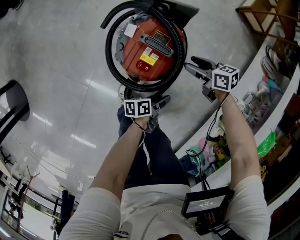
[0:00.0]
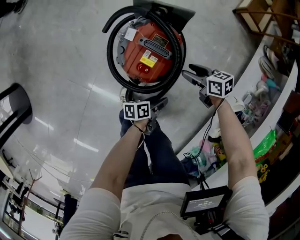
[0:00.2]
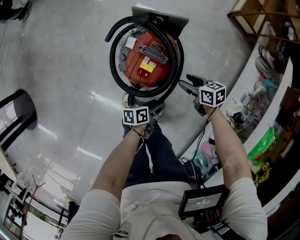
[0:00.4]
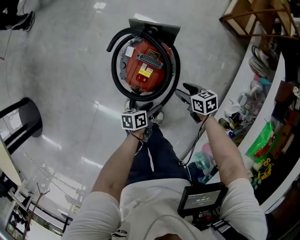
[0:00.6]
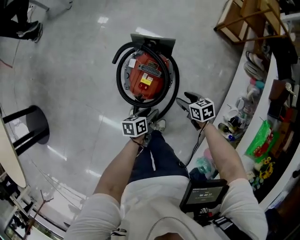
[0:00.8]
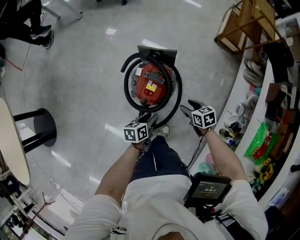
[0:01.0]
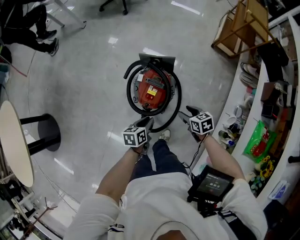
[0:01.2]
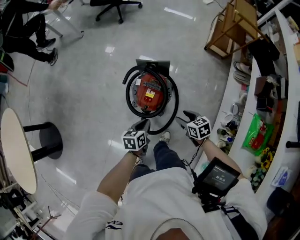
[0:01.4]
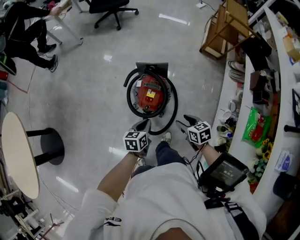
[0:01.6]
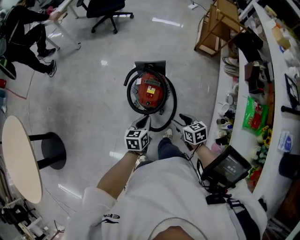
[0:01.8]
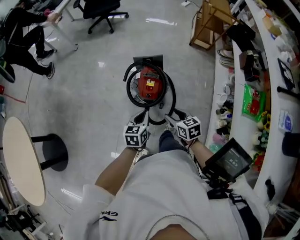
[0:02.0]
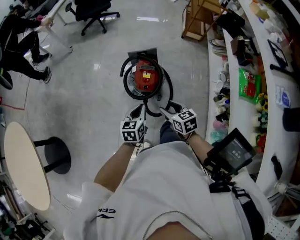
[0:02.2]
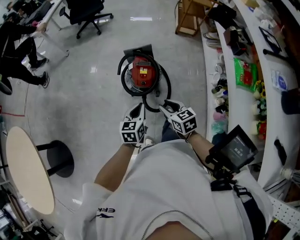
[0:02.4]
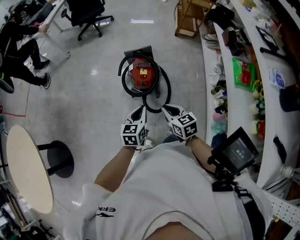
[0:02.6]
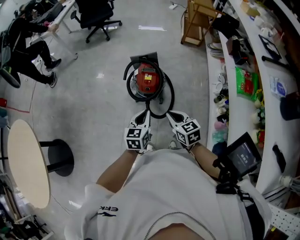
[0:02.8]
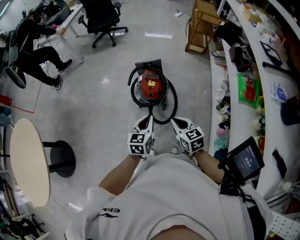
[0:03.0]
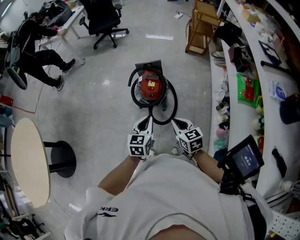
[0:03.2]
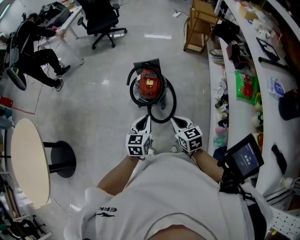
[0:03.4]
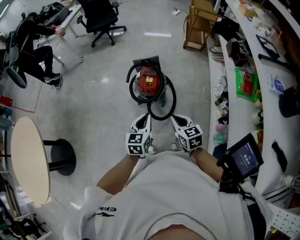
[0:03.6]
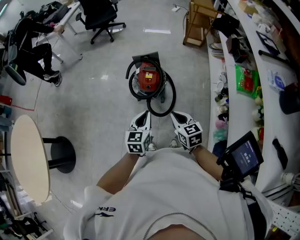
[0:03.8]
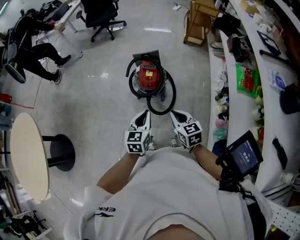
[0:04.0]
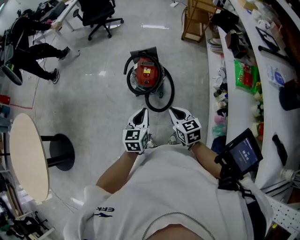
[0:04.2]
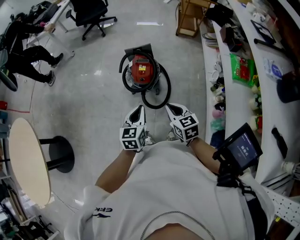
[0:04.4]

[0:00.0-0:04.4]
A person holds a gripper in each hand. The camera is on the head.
0:00.0 to 0:01.4: Both grippers travel together upward, roughly 30 cm. The left gripper swivels some 50 degrees, and closes up; the right gripper turns by roughly 20 degrees.
0:01.4 to 0:03.0: The right gripper goes some 40 cm backward, upward and to the left, rotates approximately 30 degrees, and closes its fingers; the left gripper moves backward and upward, roughly 30 cm, and swivels approximately 30 degrees.
0:03.0 to 0:04.4: There are only small adjustments of the grippers.

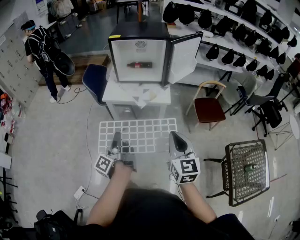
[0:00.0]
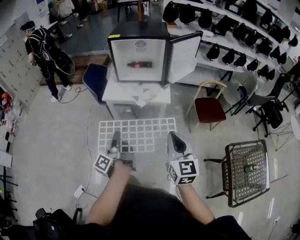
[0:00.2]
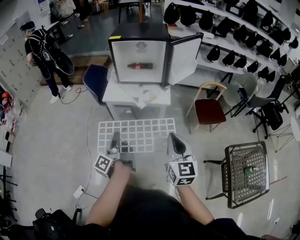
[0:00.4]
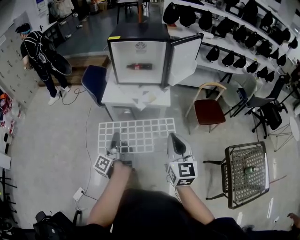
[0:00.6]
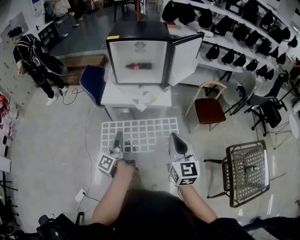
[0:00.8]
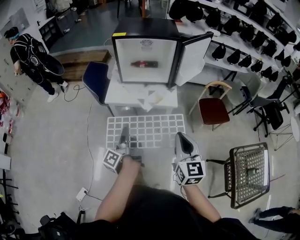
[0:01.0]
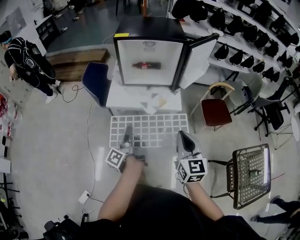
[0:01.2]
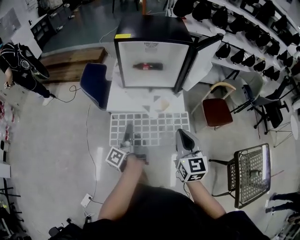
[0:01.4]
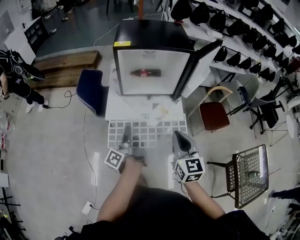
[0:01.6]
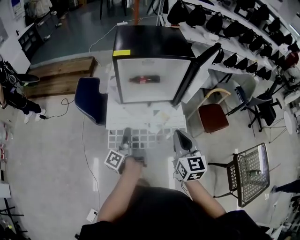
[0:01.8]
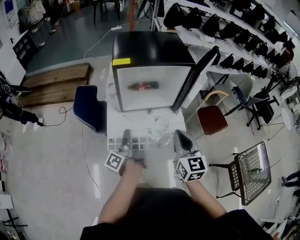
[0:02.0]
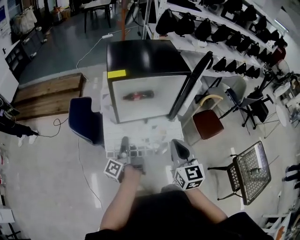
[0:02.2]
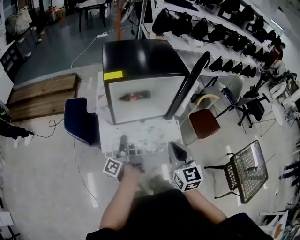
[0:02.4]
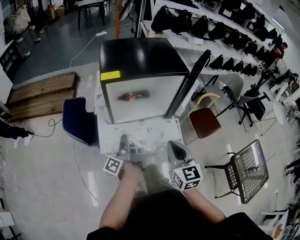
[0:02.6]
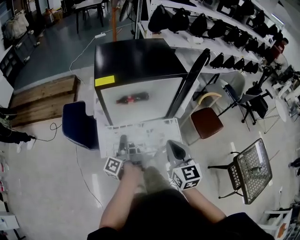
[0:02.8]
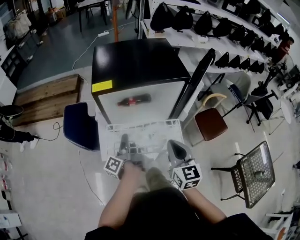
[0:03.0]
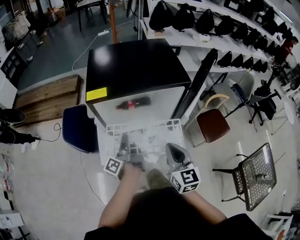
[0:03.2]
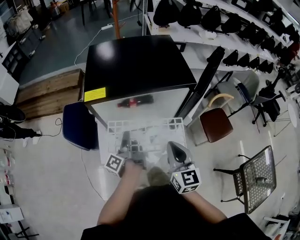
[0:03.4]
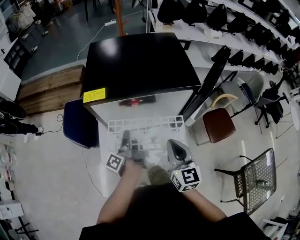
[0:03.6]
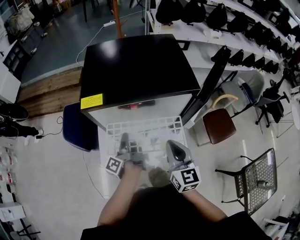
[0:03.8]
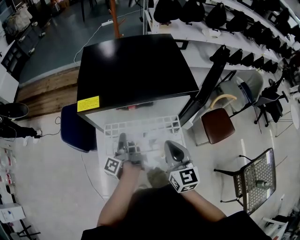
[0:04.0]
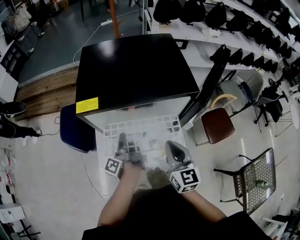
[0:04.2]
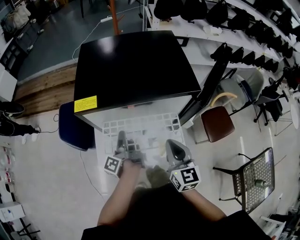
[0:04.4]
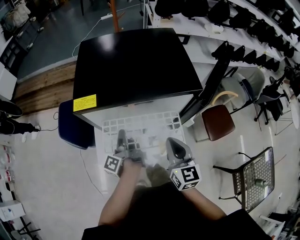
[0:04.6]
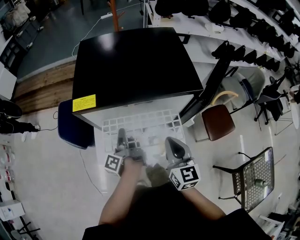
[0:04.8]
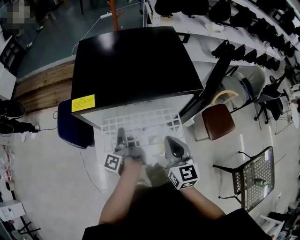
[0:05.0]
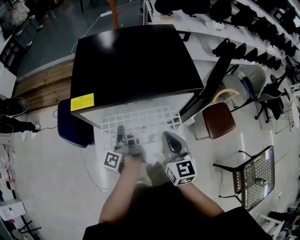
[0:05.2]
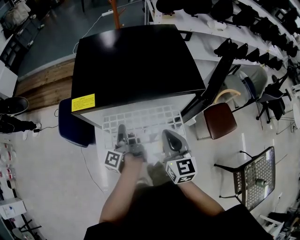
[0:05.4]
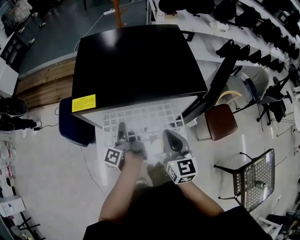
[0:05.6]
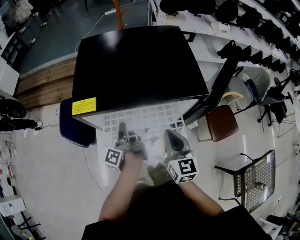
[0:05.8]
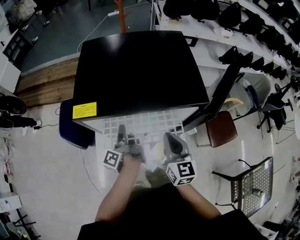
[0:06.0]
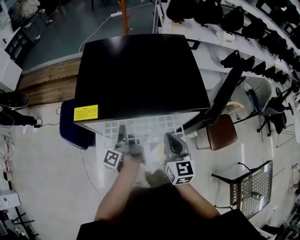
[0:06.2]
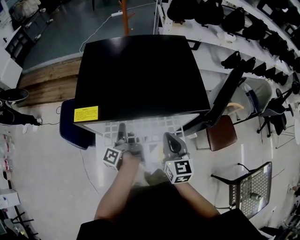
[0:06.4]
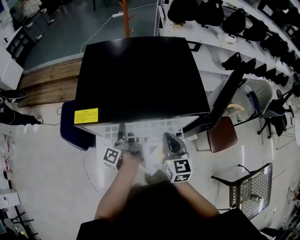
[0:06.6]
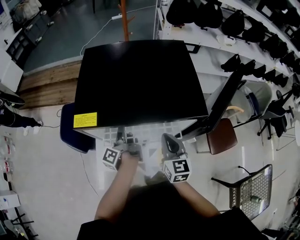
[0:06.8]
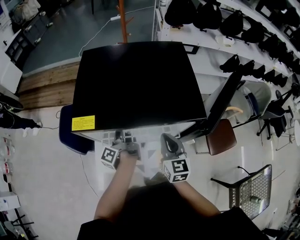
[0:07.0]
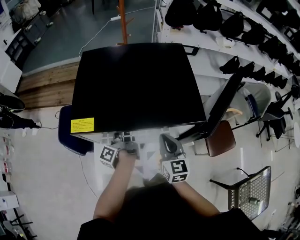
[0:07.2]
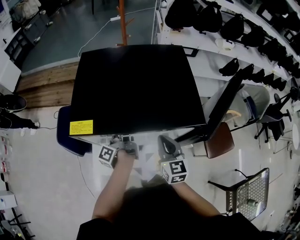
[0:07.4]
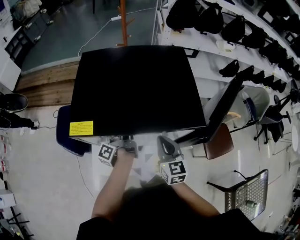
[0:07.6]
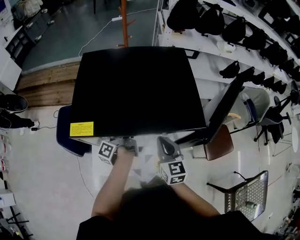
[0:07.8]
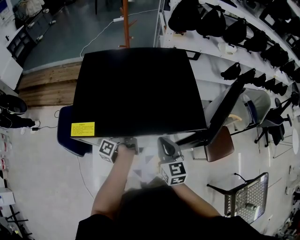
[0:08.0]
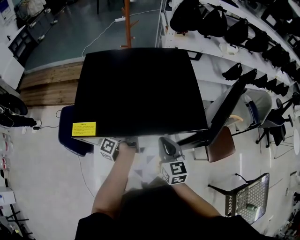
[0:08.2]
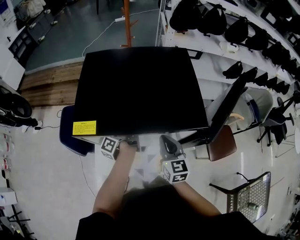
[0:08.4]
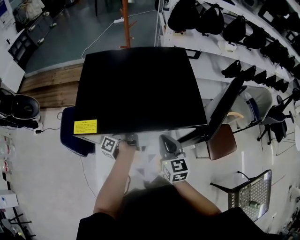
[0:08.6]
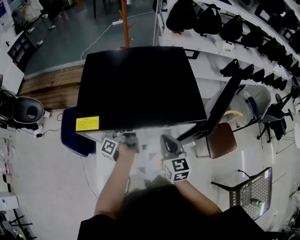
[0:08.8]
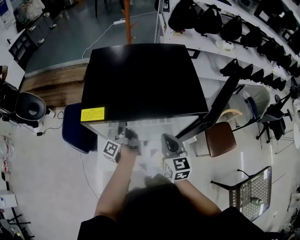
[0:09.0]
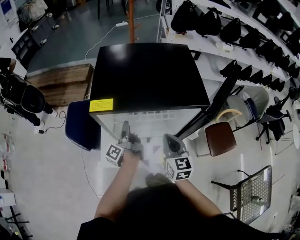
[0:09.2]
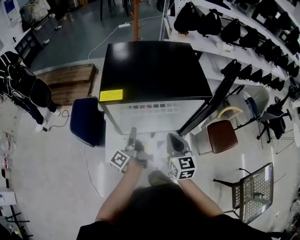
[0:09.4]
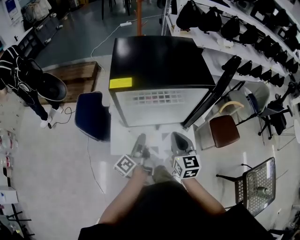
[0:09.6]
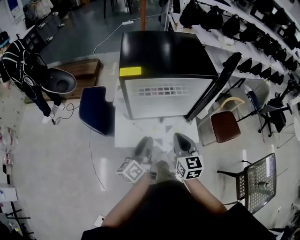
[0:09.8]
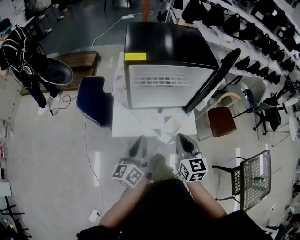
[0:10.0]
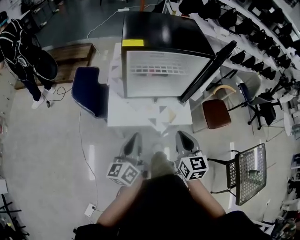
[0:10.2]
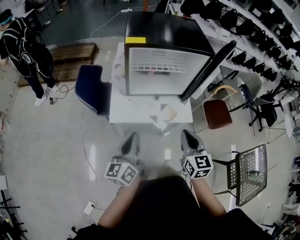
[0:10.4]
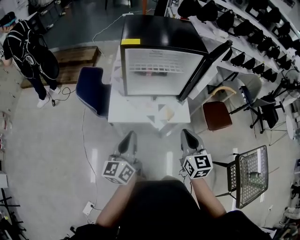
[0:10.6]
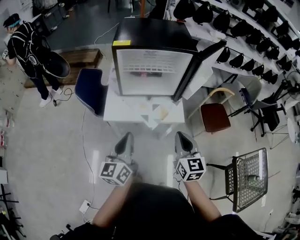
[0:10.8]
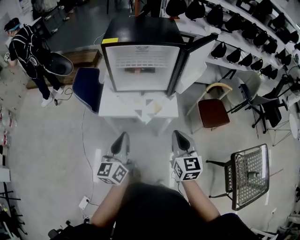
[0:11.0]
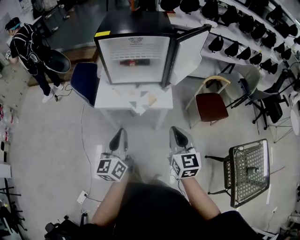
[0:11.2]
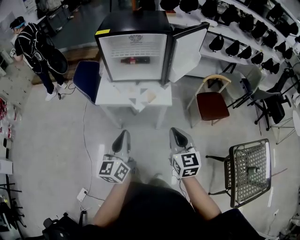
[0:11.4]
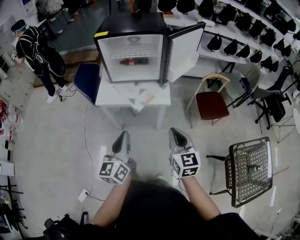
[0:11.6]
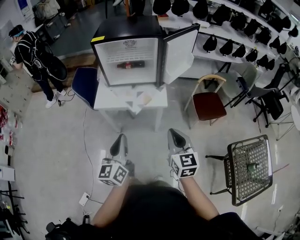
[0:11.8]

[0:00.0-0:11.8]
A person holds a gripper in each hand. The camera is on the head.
0:00.0 to 0:01.4: The right gripper ends up roughly 25 cm from where it was.
0:01.4 to 0:03.0: The right gripper ends up roughly 25 cm from where it was.
0:03.0 to 0:04.4: The right gripper shifts by about 15 cm.
0:04.4 to 0:06.0: The right gripper moves some 5 cm.
0:06.0 to 0:07.4: The right gripper moves about 5 cm.
0:08.8 to 0:10.4: The right gripper changes place by about 35 cm.
0:10.4 to 0:11.8: The right gripper shifts by roughly 30 cm.

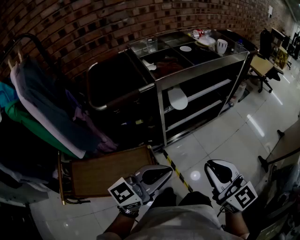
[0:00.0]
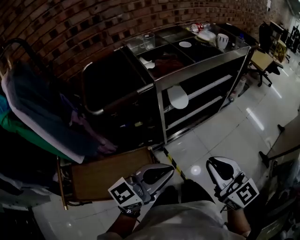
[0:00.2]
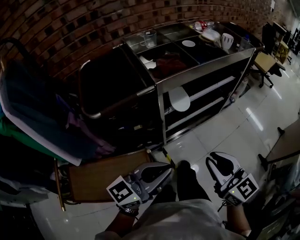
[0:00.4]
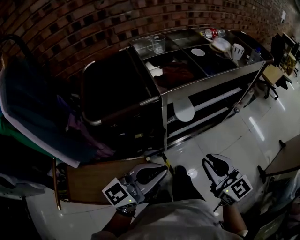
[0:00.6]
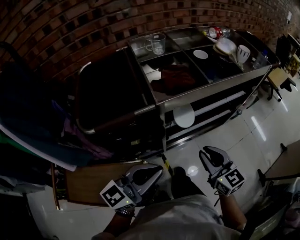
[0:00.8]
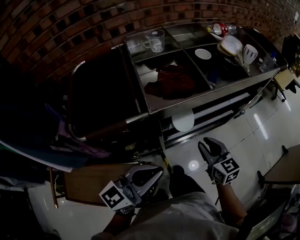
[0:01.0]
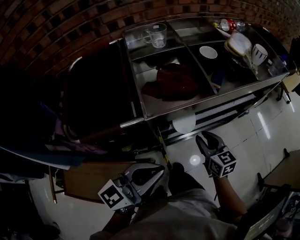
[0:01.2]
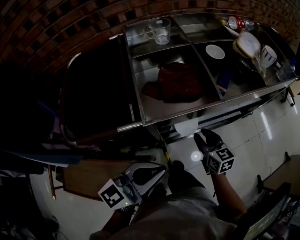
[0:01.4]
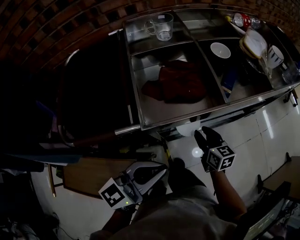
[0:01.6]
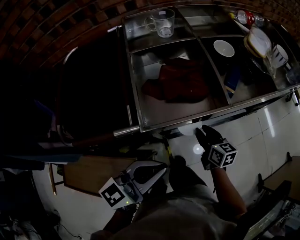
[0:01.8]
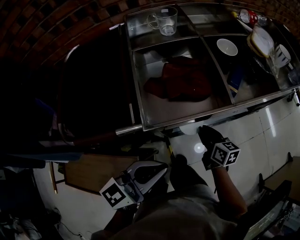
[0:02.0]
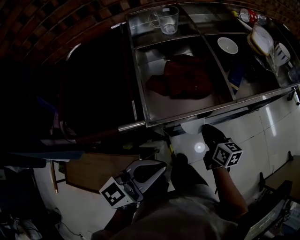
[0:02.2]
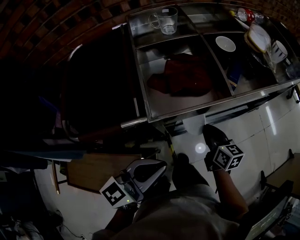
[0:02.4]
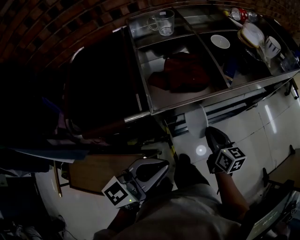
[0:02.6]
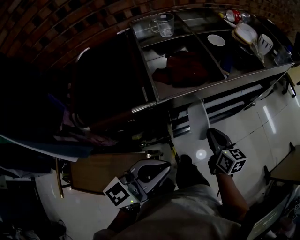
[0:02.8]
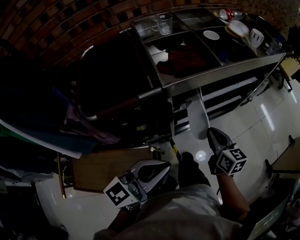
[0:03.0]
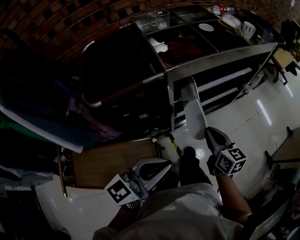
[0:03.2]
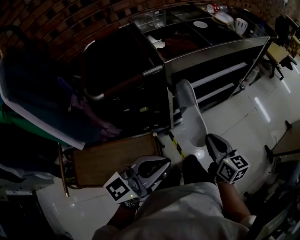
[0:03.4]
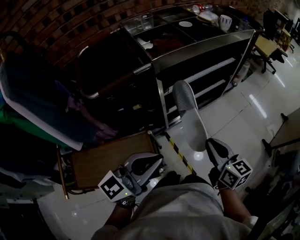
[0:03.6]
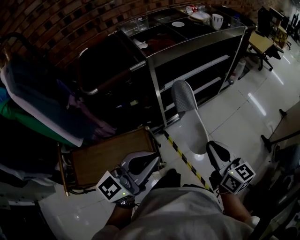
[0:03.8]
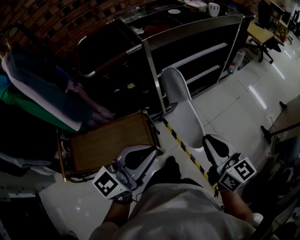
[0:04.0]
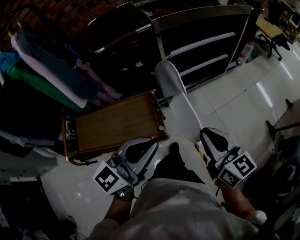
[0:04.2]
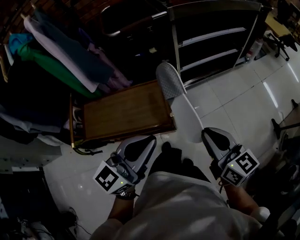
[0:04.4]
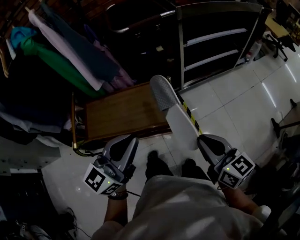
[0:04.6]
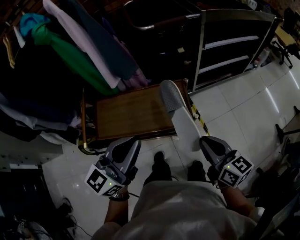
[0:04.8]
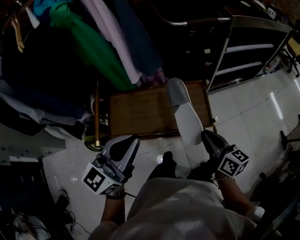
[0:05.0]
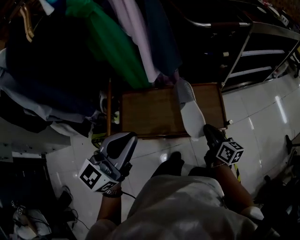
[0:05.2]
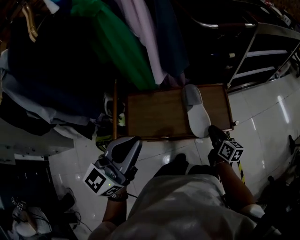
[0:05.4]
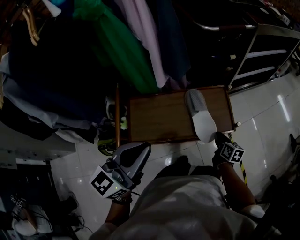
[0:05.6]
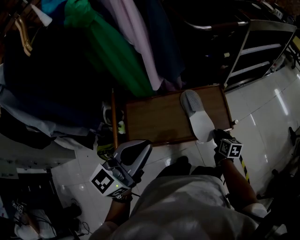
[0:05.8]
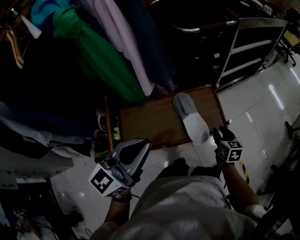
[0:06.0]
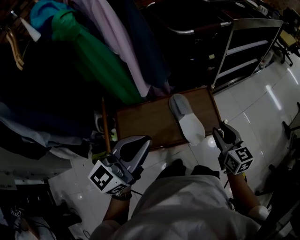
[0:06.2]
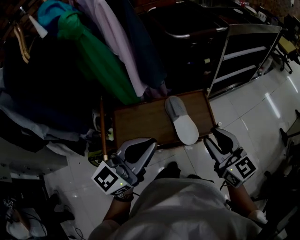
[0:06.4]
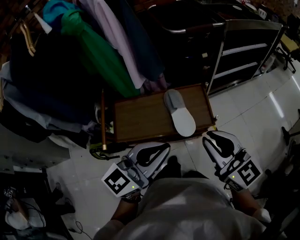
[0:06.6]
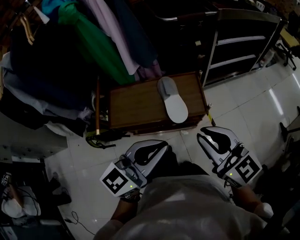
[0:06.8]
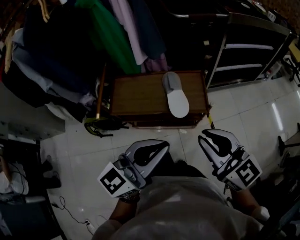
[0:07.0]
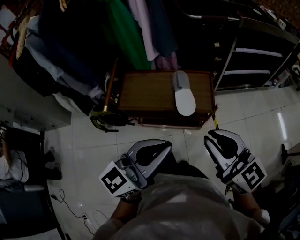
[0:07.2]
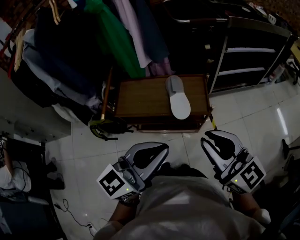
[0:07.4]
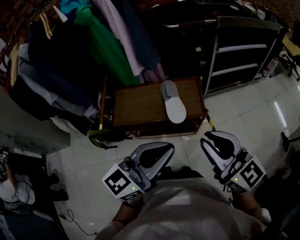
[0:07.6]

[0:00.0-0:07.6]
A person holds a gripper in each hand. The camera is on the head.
0:00.0 to 0:01.6: The right gripper goes roughly 50 cm forward and downward, changes its angle by about 30 degrees, and opens its fingers. The left gripper goes roughly 30 cm forward.
0:01.6 to 0:03.0: The right gripper travels backward and upward by approximately 15 cm, and closes; the left gripper goes about 15 cm backward.
0:03.0 to 0:04.6: Both grippers move backward, approximately 40 cm.
0:04.6 to 0:06.0: The right gripper is displaced downward, to the left and forward by some 30 cm, changes its angle by about 30 degrees, and opens; the left gripper shifts some 25 cm to the left.
0:06.0 to 0:07.6: The left gripper heads to the right and backward, covering approximately 25 cm; the right gripper shifts some 40 cm upward and backward, tips its fingers upward by about 40 degrees, and closes.
